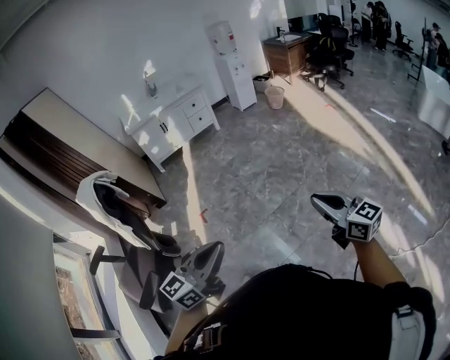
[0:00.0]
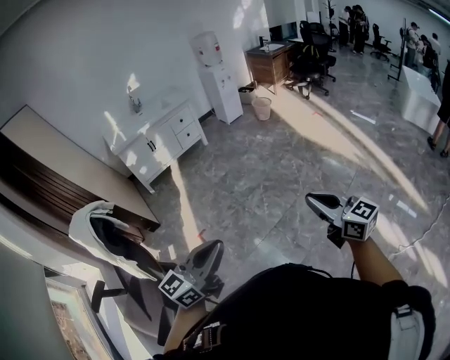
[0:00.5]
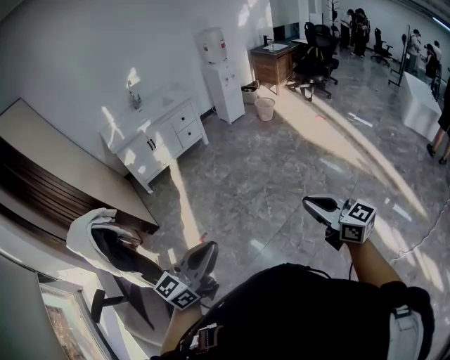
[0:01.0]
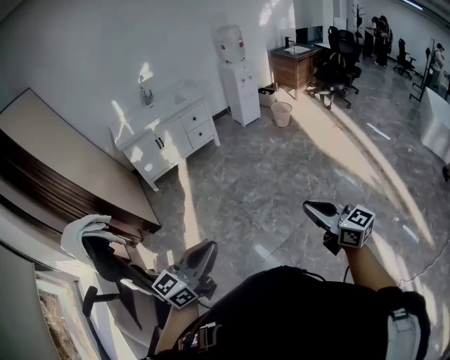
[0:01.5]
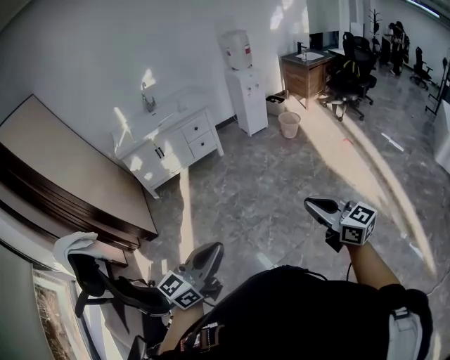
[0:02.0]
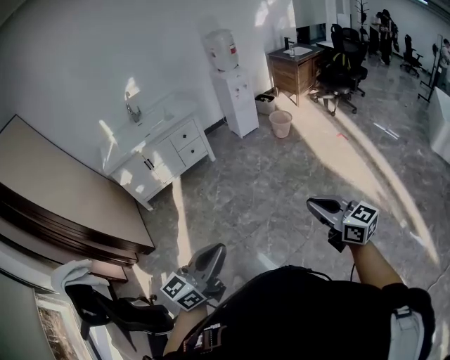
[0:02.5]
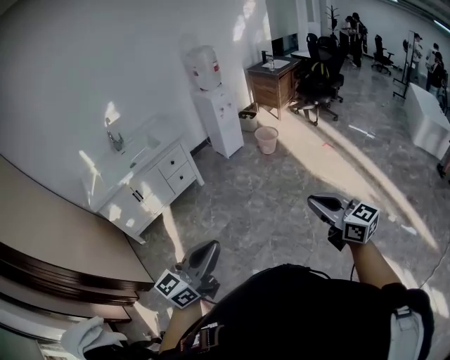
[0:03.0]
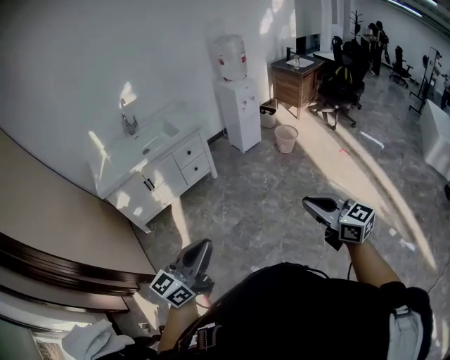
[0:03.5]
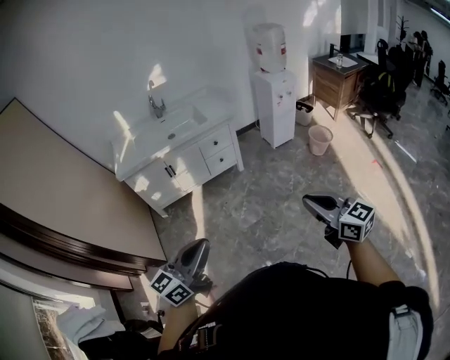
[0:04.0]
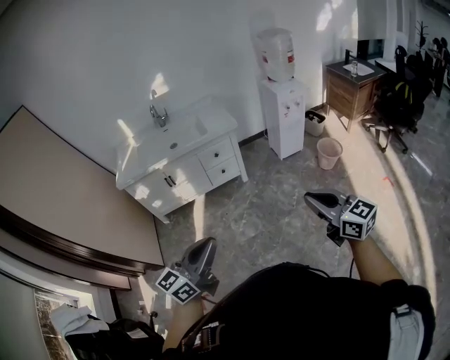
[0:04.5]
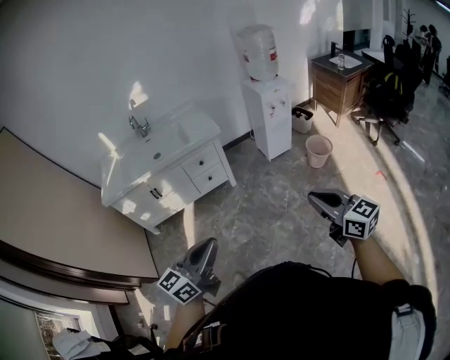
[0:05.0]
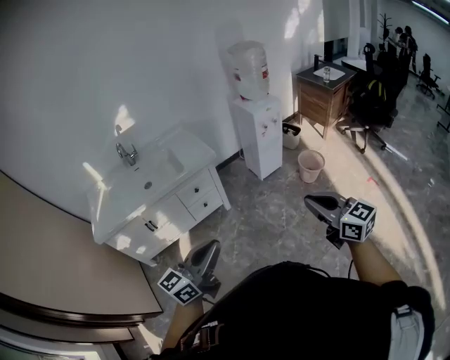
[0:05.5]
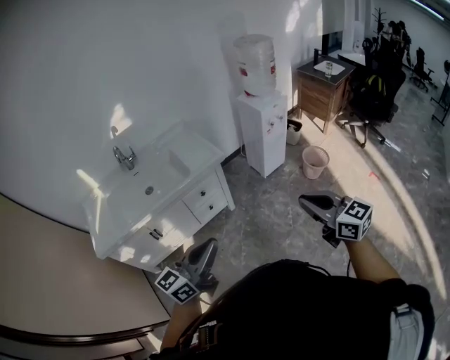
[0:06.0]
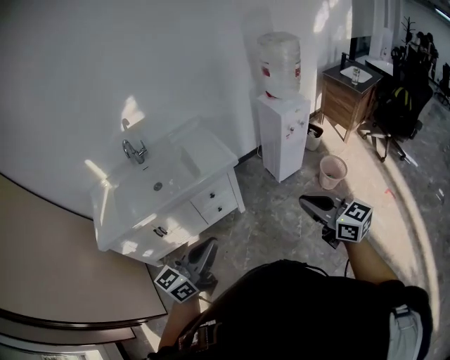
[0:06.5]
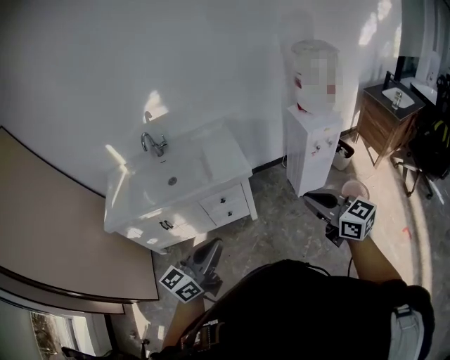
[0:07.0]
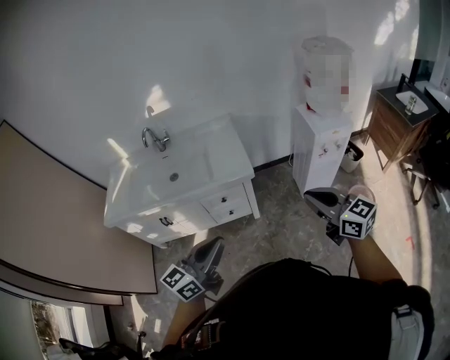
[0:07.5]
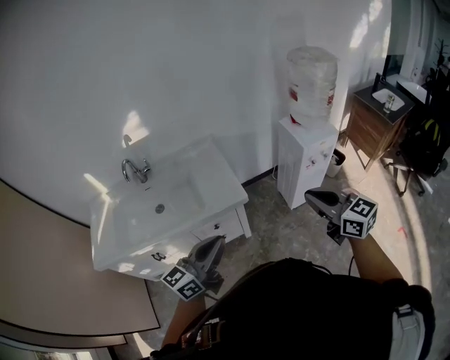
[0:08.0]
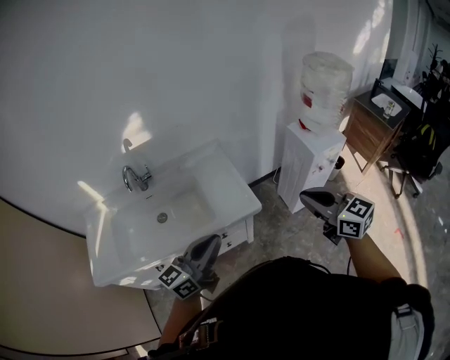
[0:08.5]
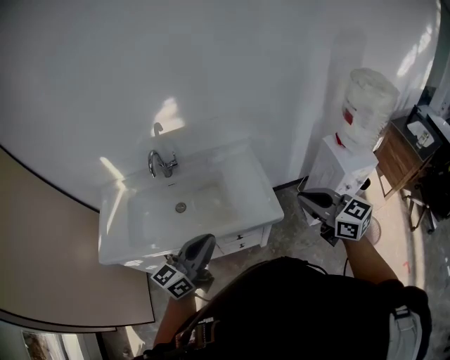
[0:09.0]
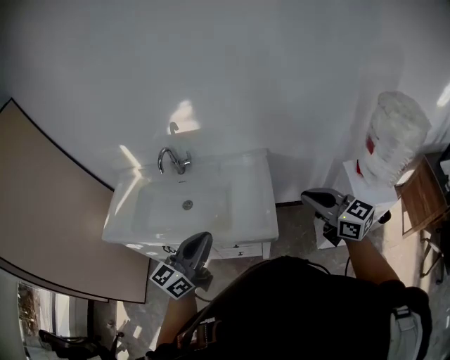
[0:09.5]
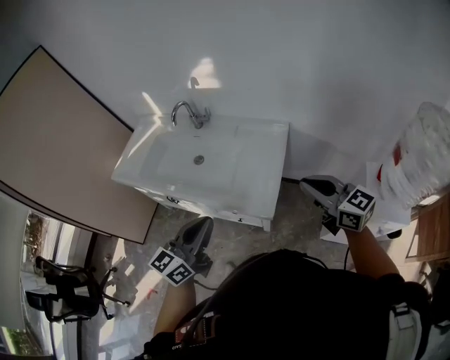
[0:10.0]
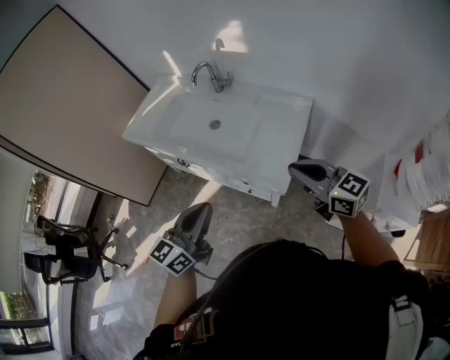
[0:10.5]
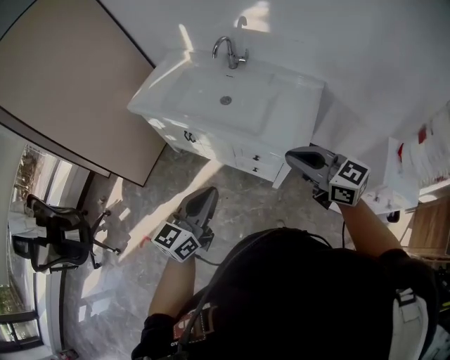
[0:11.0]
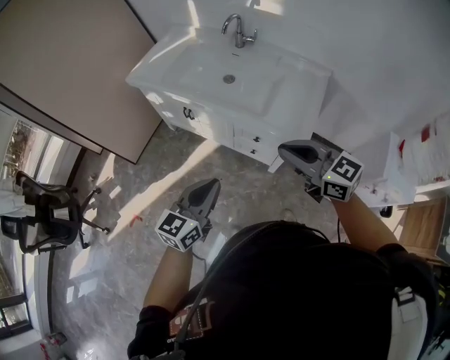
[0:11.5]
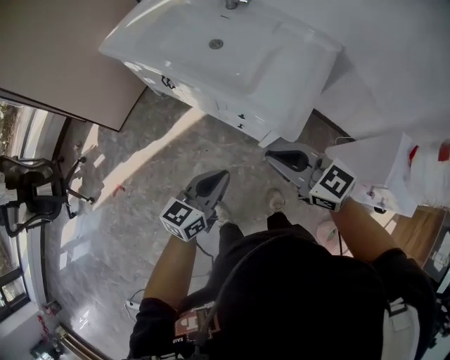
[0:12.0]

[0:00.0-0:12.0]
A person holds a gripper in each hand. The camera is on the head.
0:00.0 to 0:02.0: The pair of grippers is taken forward, roughly 50 cm.
0:02.0 to 0:04.0: The two grippers travel together, forward and to the left, approximately 50 cm.
0:04.0 to 0:06.0: Both grippers are carried forward, some 40 cm.
0:06.0 to 0:08.0: The grippers both shift forward by approximately 35 cm.
0:08.0 to 0:10.0: The left gripper changes place by approximately 20 cm, and rotates about 50 degrees, while the right gripper shifts by approximately 35 cm, and swivels about 40 degrees.
0:10.0 to 0:12.0: The left gripper heads downward, covering about 25 cm; the right gripper travels to the left and downward by some 30 cm, and changes its angle by some 30 degrees.

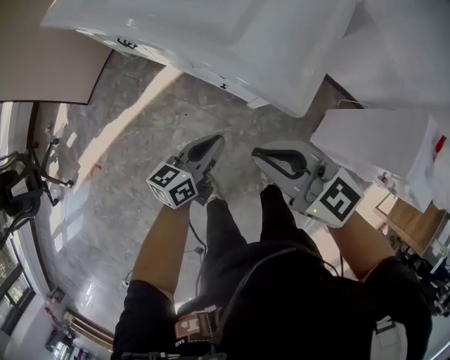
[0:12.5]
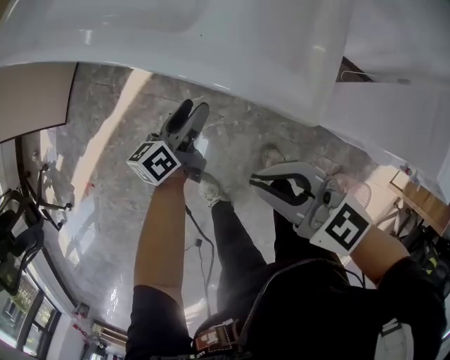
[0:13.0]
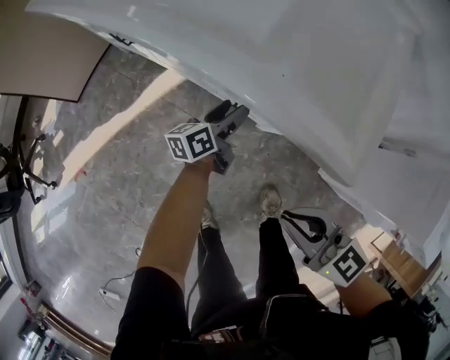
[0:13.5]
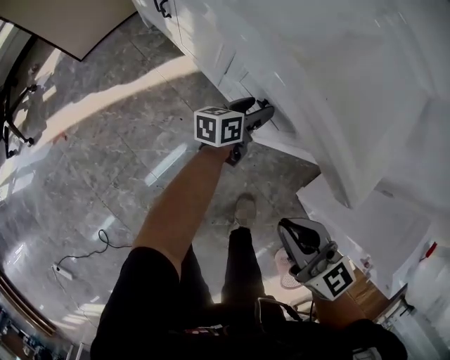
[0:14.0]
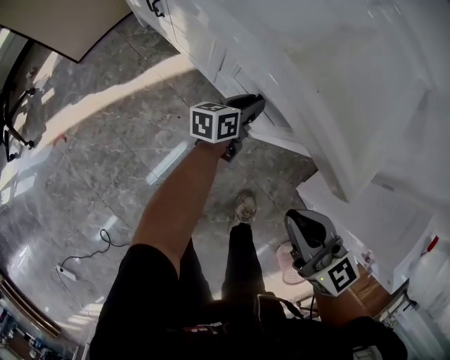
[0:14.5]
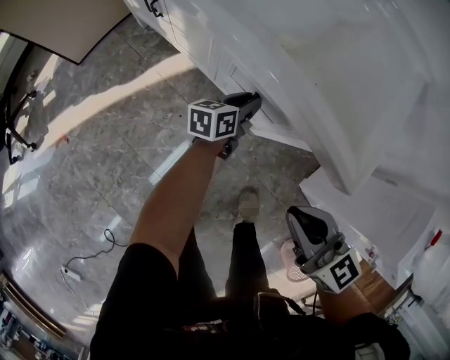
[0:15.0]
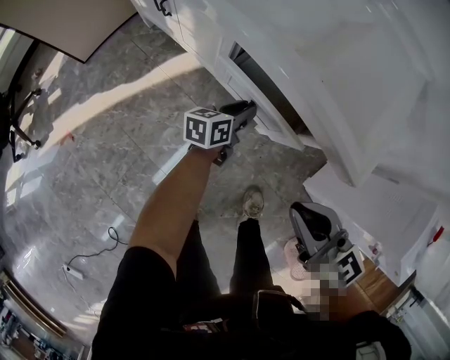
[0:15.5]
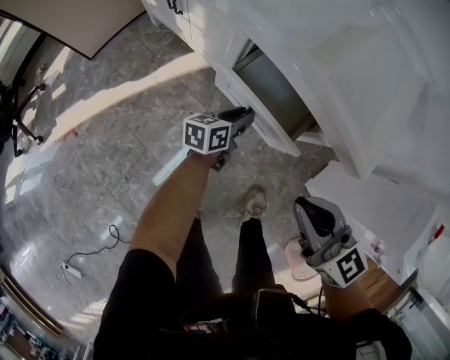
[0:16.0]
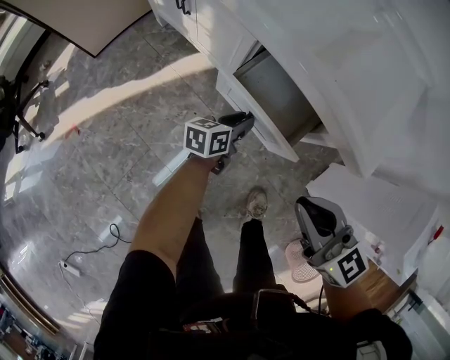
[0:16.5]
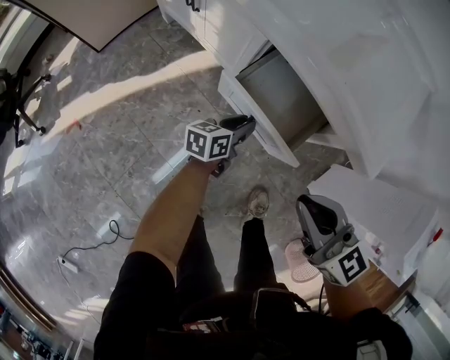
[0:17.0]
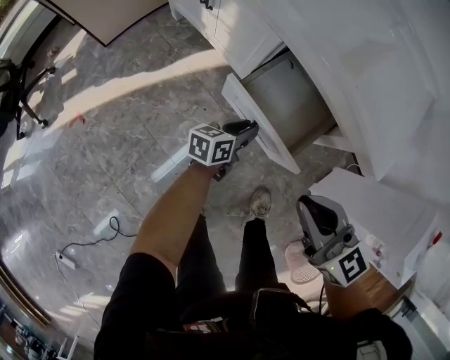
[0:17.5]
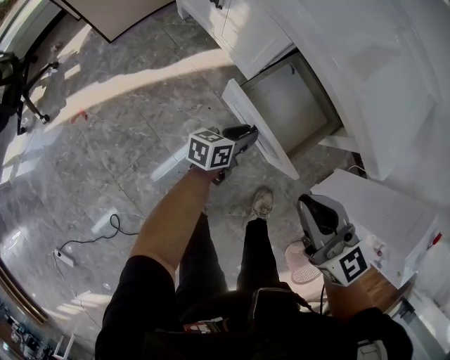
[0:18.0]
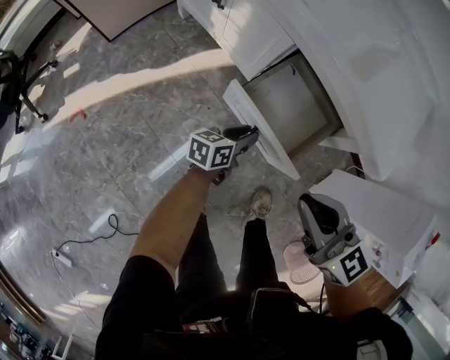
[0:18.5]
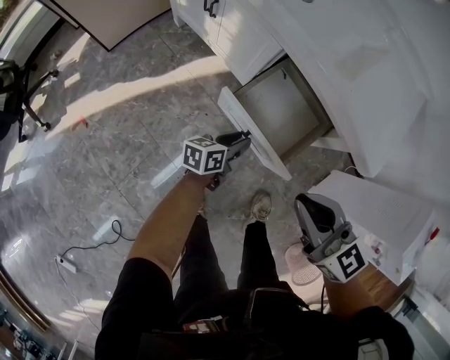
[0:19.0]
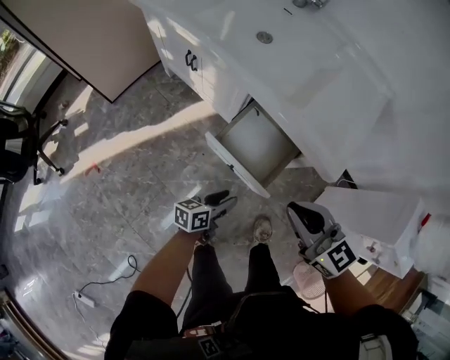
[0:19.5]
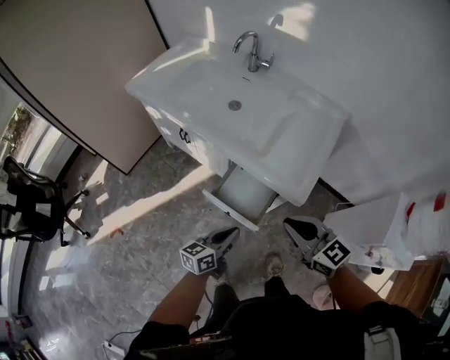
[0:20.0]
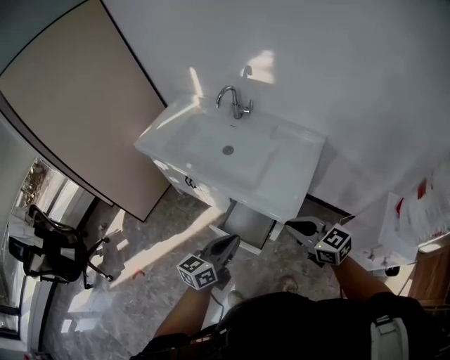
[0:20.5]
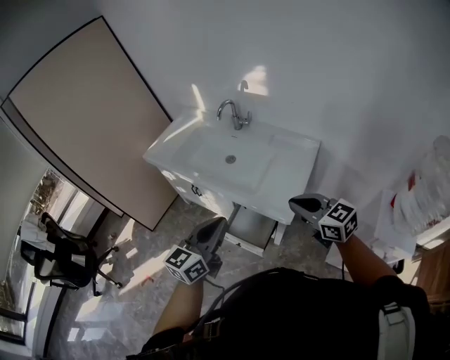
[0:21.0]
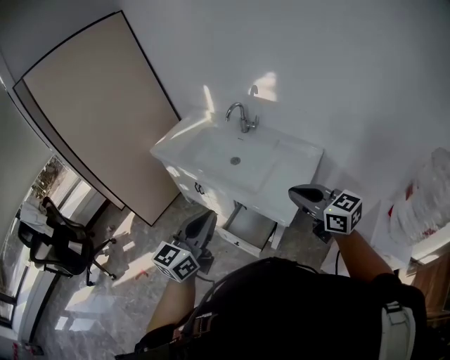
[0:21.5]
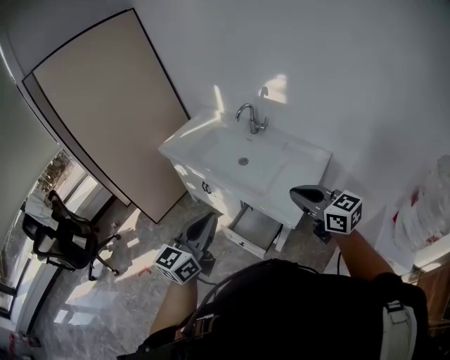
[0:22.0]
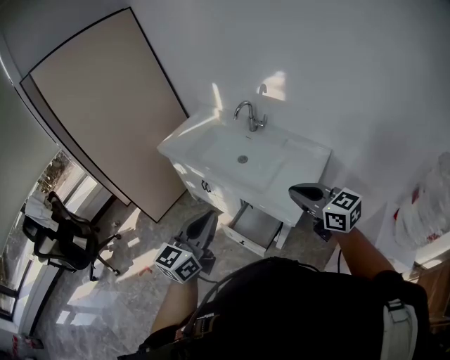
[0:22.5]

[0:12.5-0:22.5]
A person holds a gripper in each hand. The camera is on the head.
0:12.5 to 0:14.5: The left gripper goes roughly 30 cm downward and forward, and opens its fingers. The right gripper moves downward, about 15 cm.
0:14.5 to 0:16.5: The left gripper heads backward and to the left, covering some 10 cm. The right gripper moves approximately 5 cm.
0:16.5 to 0:18.5: The left gripper goes some 10 cm backward and to the left. Meanwhile the right gripper is displaced to the left by some 5 cm.
0:18.5 to 0:20.5: The right gripper shifts about 30 cm upward and to the right. Meanwhile the left gripper moves upward, some 50 cm, rotates approximately 30 degrees, and closes its fingers.
0:20.5 to 0:22.5: The grippers both shift upward by some 15 cm. The left gripper changes its angle by approximately 30 degrees.

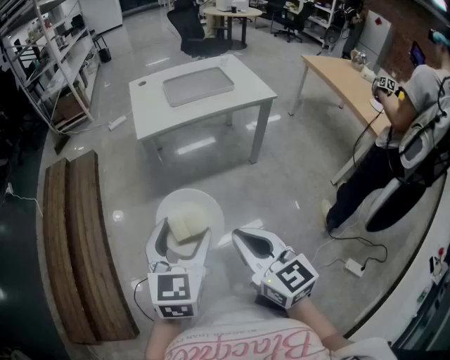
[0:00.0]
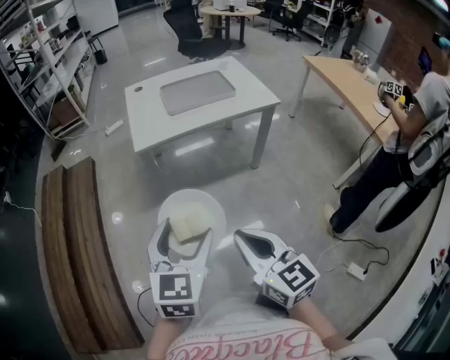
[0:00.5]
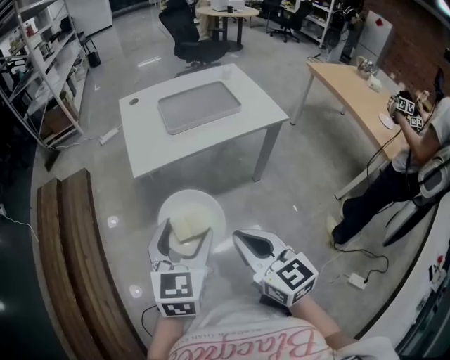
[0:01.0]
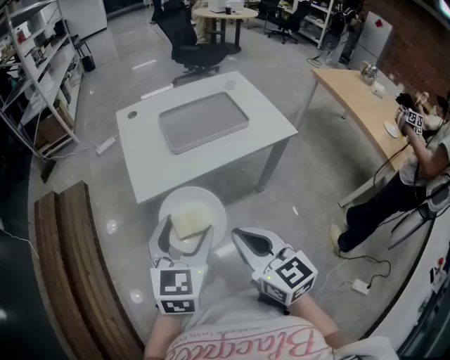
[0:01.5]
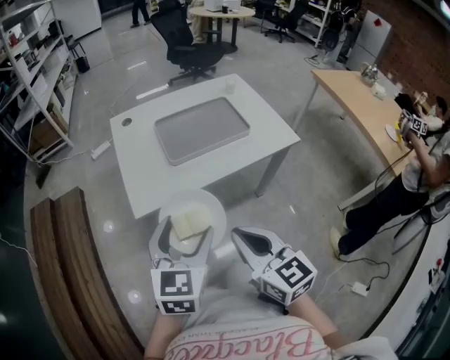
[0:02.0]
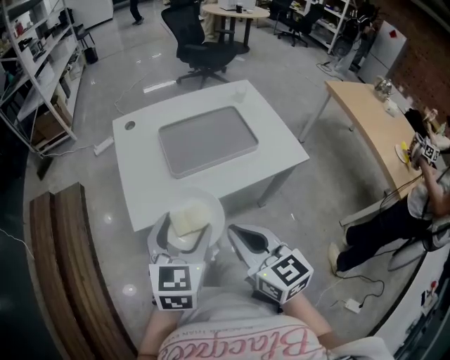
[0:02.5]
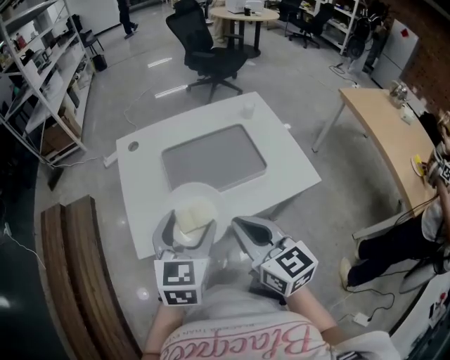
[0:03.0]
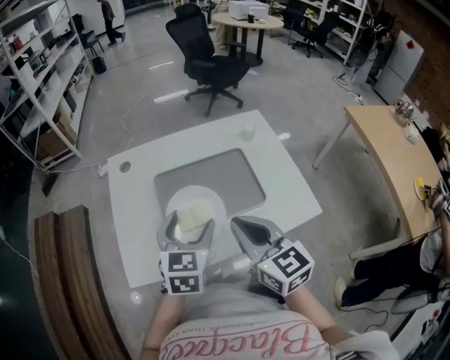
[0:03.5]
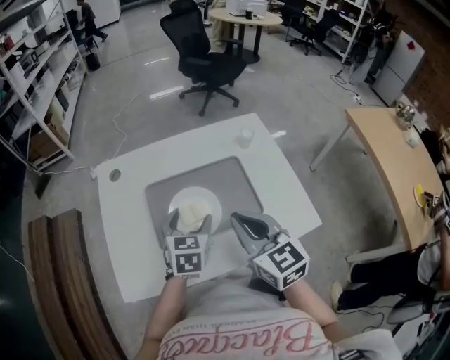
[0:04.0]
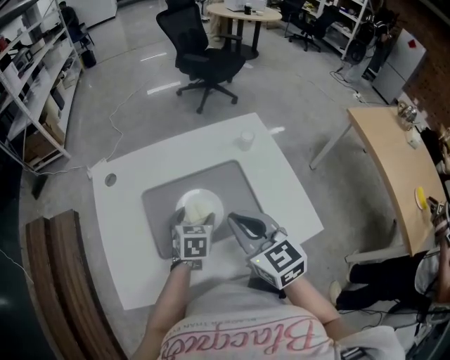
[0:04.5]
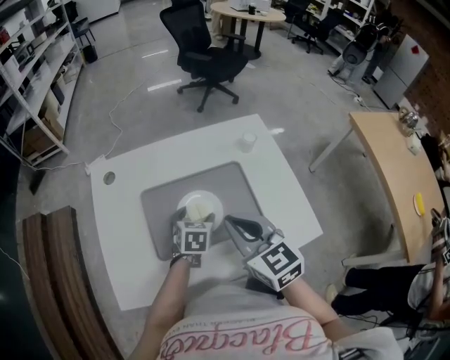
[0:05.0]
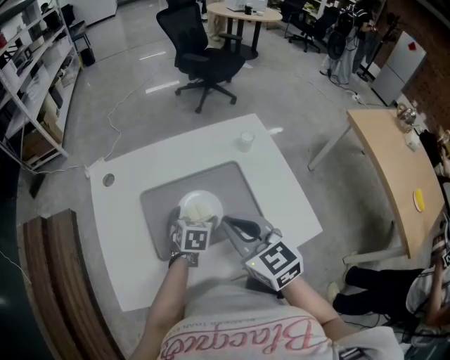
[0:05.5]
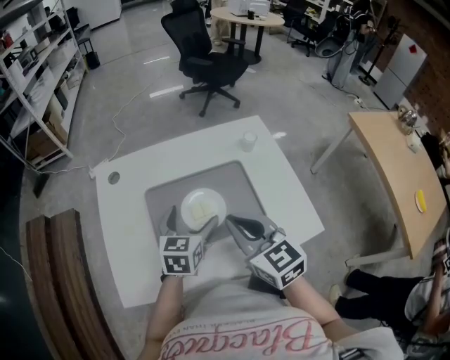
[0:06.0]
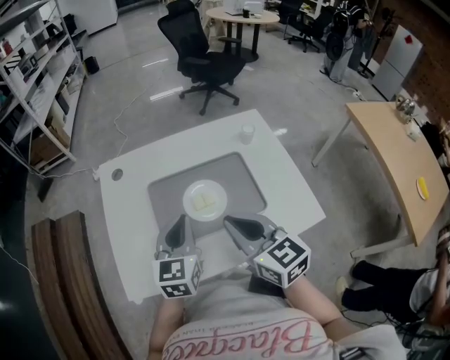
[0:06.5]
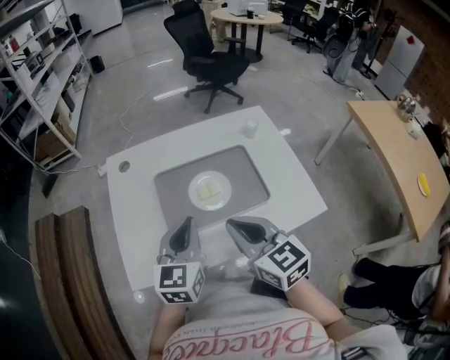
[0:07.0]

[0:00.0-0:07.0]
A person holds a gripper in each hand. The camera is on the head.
0:00.0 to 0:02.0: The two grippers go roughly 30 cm forward.
0:02.0 to 0:03.5: The two grippers go roughly 25 cm forward.
0:03.5 to 0:05.0: The right gripper goes approximately 10 cm forward. The left gripper heads downward and forward, covering approximately 20 cm, and turns by some 20 degrees.
0:05.0 to 0:07.0: The right gripper travels backward by about 5 cm; the left gripper goes approximately 20 cm upward, backward and to the left, angles its fingers upward, by roughly 30 degrees, and closes its fingers.
